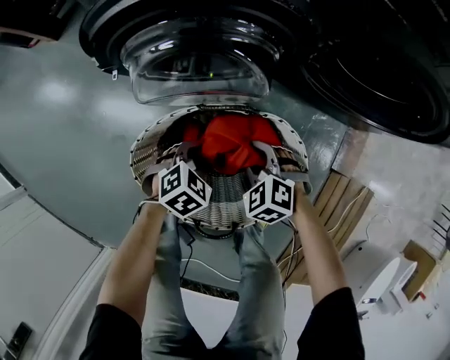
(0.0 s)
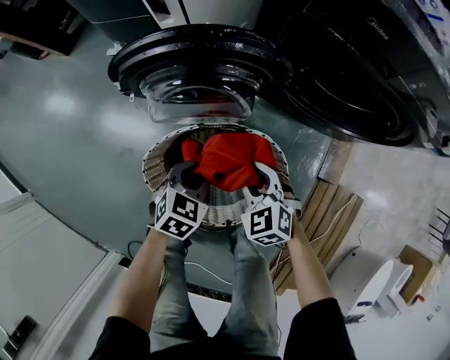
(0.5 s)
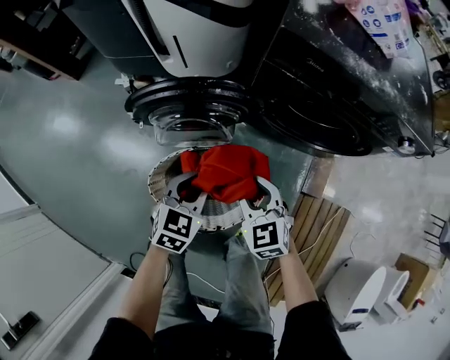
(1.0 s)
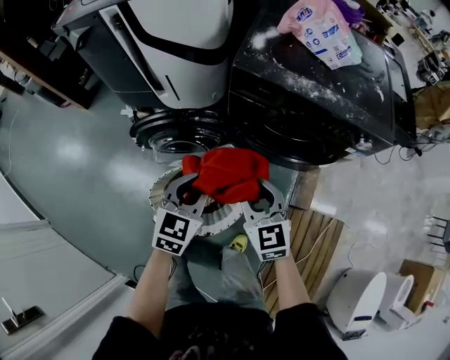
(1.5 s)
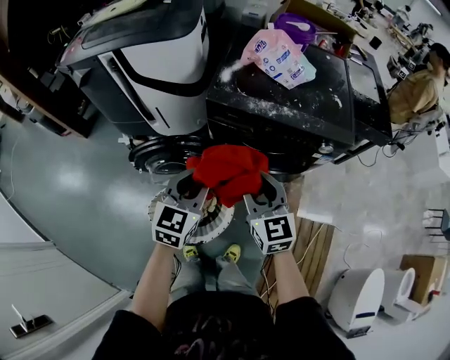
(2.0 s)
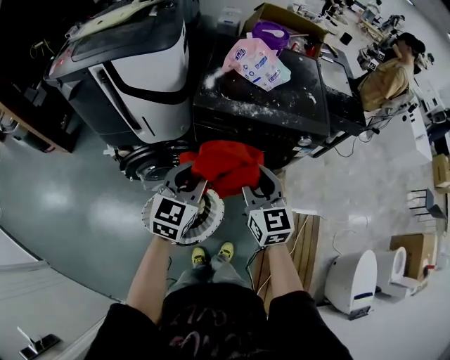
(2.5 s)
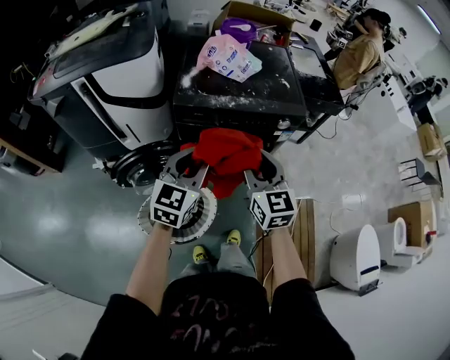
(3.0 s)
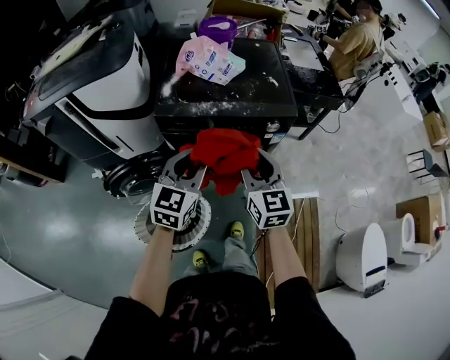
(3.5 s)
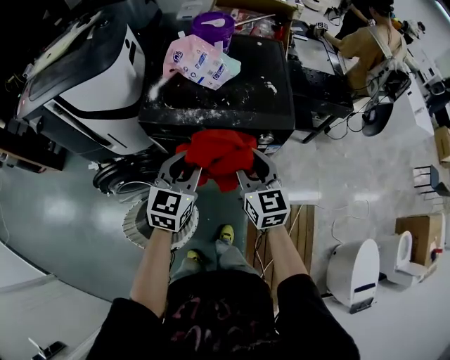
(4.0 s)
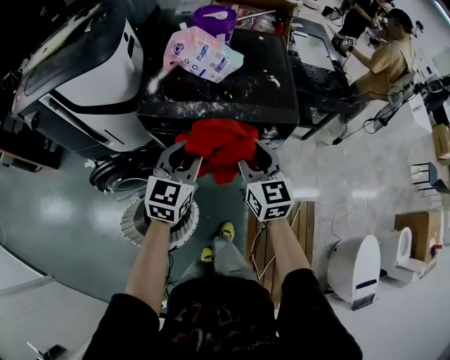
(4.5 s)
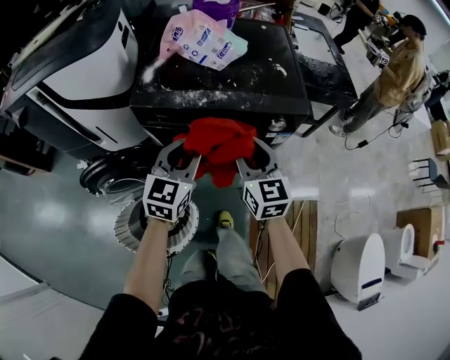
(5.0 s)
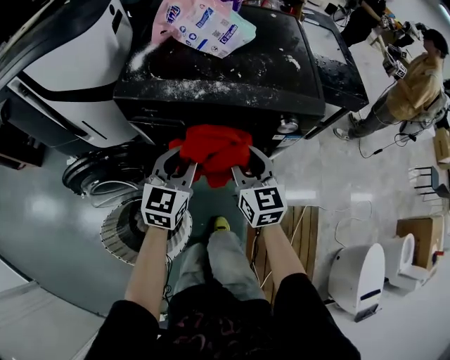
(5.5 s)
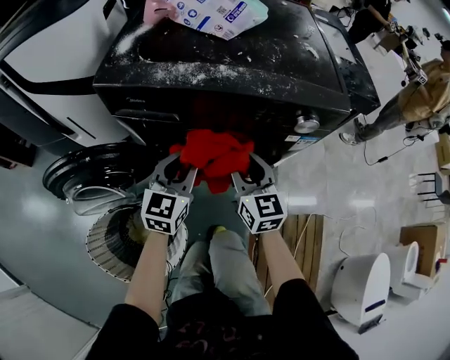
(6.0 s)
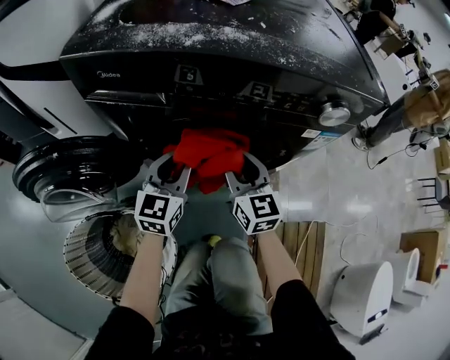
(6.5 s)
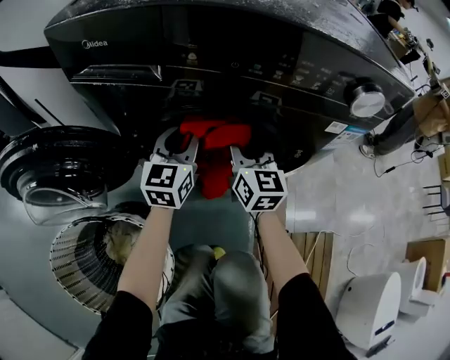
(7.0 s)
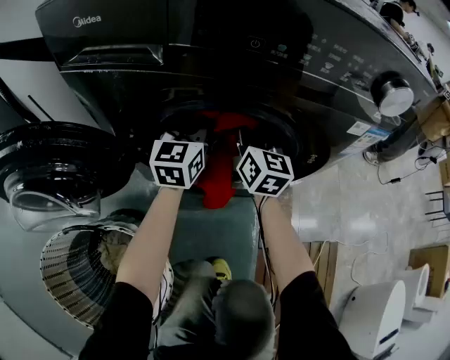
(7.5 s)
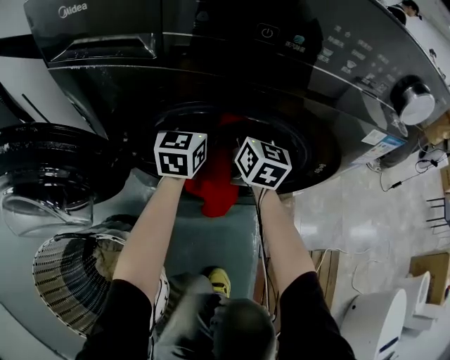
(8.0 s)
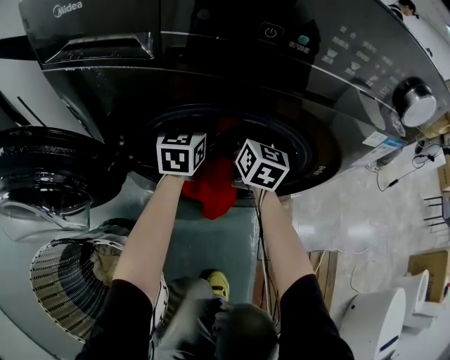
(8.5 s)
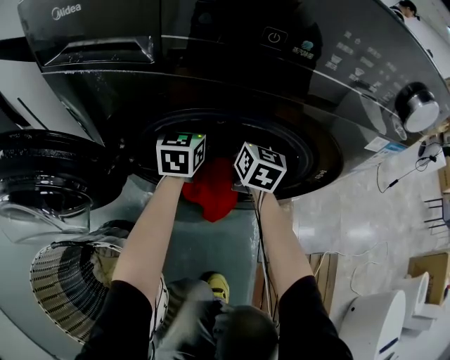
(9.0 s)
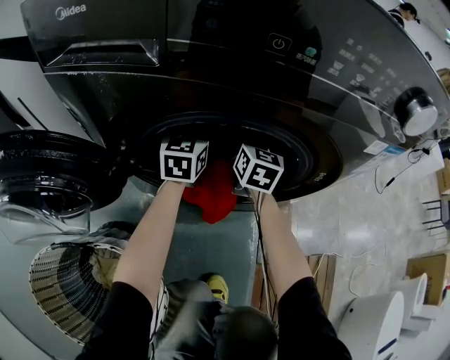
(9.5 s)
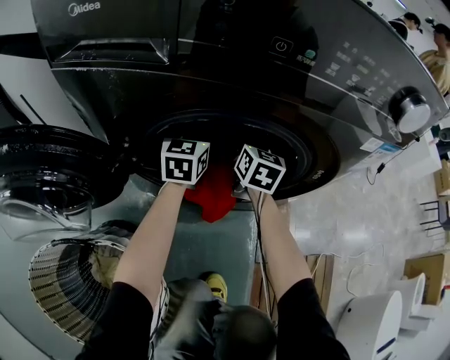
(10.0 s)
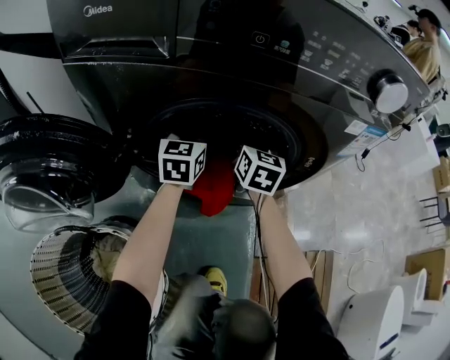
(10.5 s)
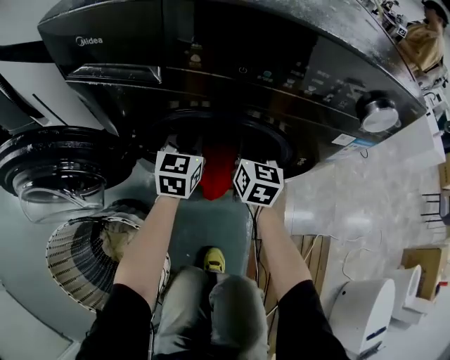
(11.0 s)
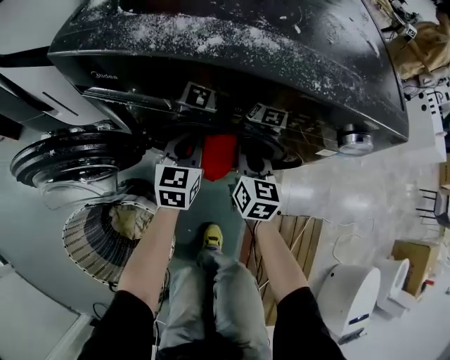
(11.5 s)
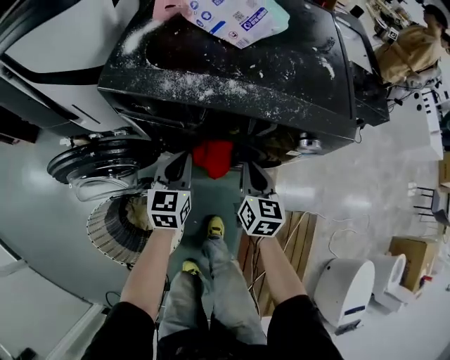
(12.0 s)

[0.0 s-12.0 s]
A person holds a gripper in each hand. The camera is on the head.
0.0 to 2.0 s: The two grippers go about 60 cm upward. The right gripper tilts its fingers some 50 degrees upward. The left gripper points its fingers some 40 degrees further upward.
2.0 to 4.0 s: The grippers both shift to the right and forward by approximately 20 cm.
4.0 to 6.0 s: The two grippers go about 30 cm downward.
6.0 to 8.0 s: The right gripper goes some 30 cm downward and forward. Meanwhile the left gripper travels forward and downward by approximately 30 cm.
8.0 to 10.0 s: The right gripper moves downward, some 5 cm.
10.0 to 12.0 s: The grippers both shift upward and backward by some 30 cm.

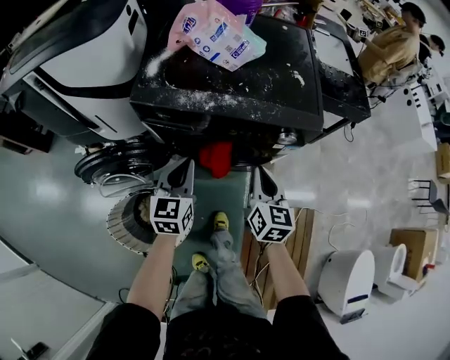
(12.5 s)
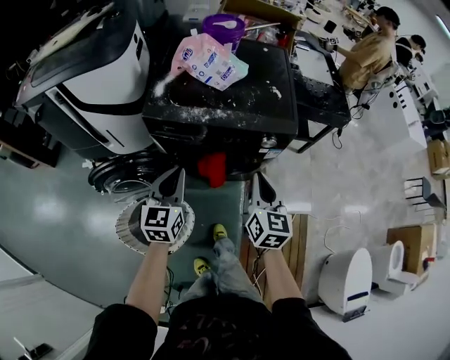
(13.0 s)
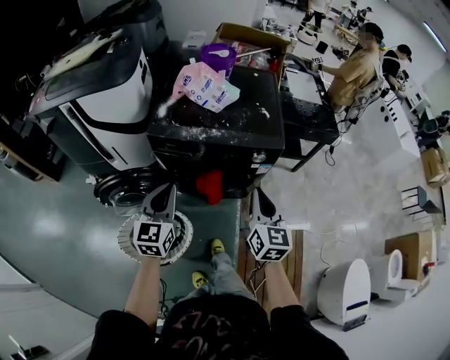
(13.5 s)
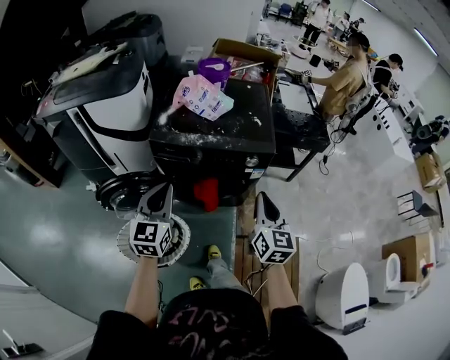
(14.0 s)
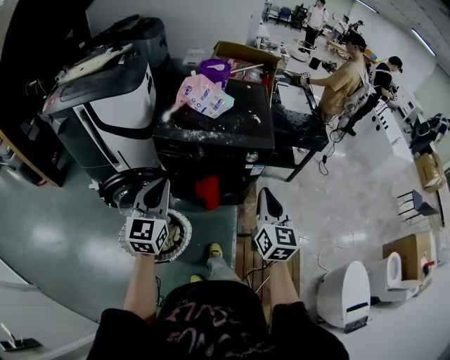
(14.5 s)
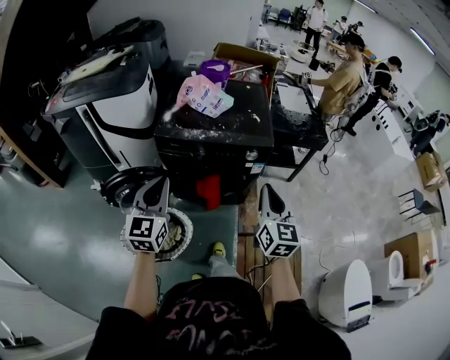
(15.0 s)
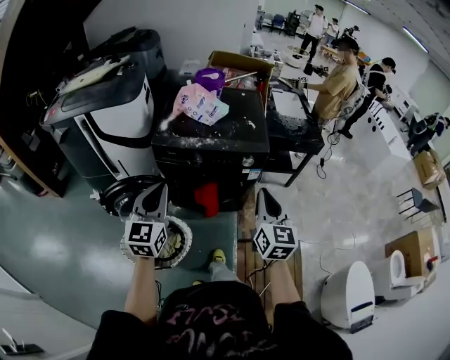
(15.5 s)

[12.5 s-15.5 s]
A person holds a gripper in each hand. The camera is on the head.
12.5 to 14.0 s: The two grippers go roughly 25 cm upward and backward.
14.0 to 15.5 s: The left gripper moves backward, about 5 cm; the right gripper ends up some 5 cm from where it was.

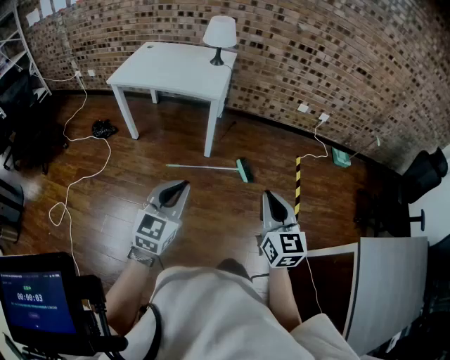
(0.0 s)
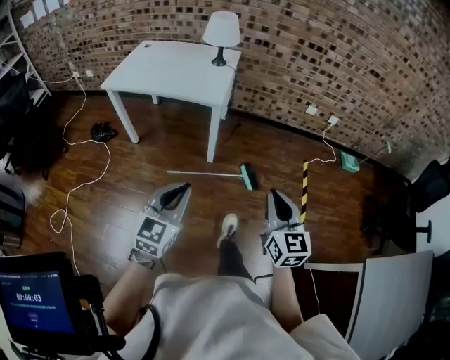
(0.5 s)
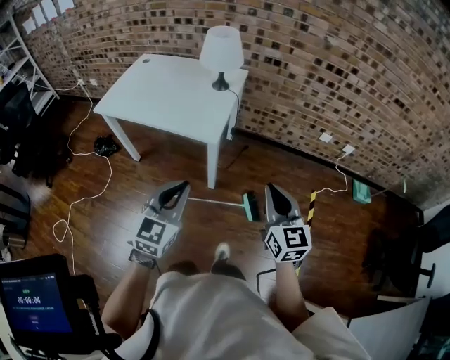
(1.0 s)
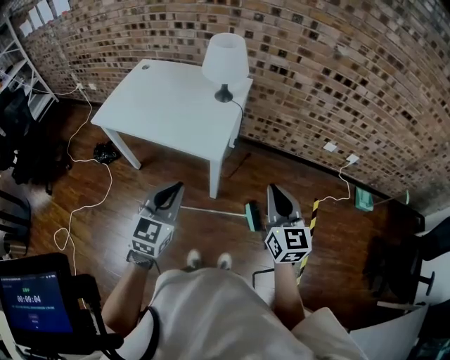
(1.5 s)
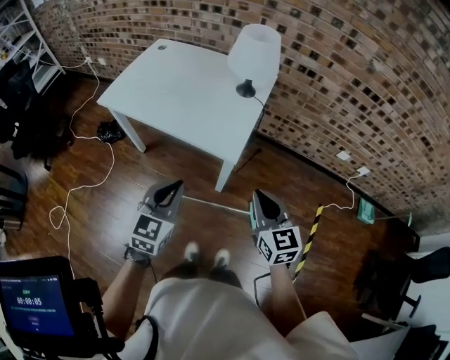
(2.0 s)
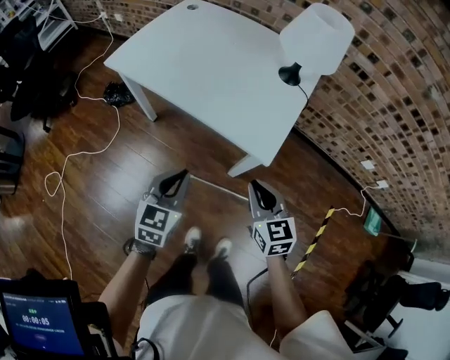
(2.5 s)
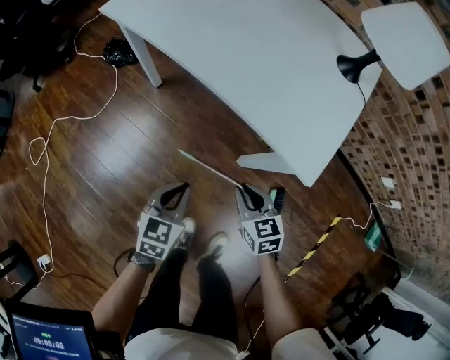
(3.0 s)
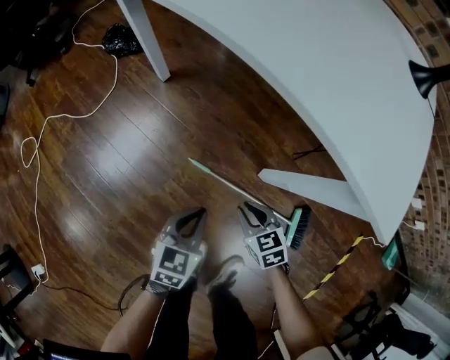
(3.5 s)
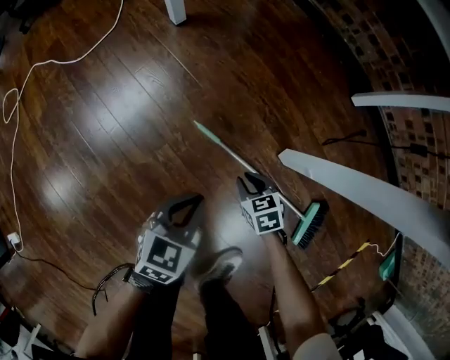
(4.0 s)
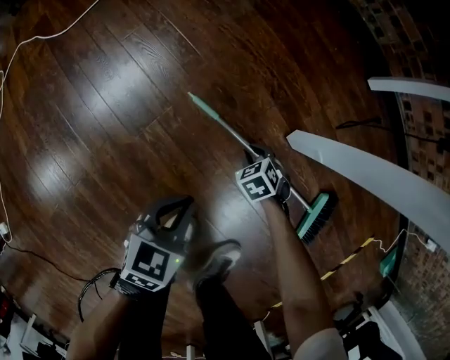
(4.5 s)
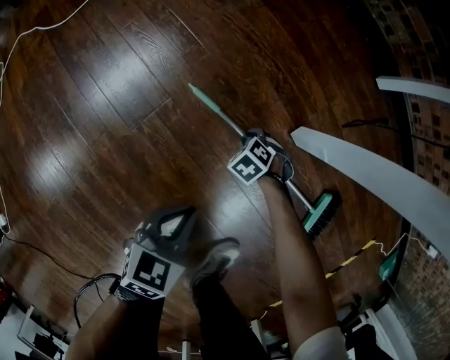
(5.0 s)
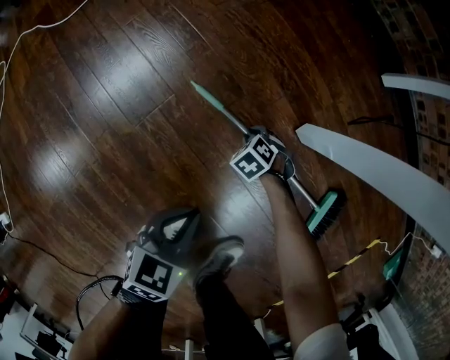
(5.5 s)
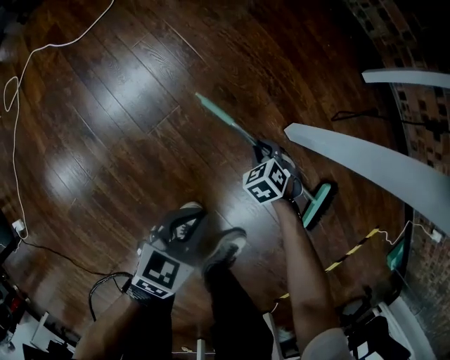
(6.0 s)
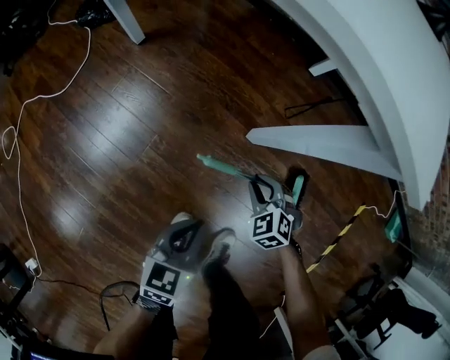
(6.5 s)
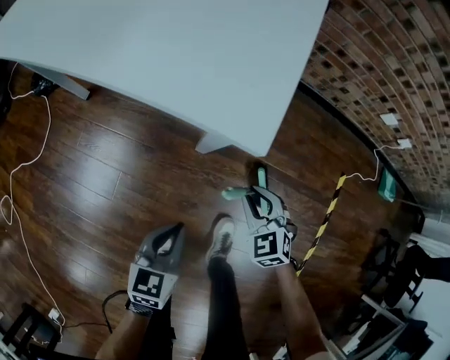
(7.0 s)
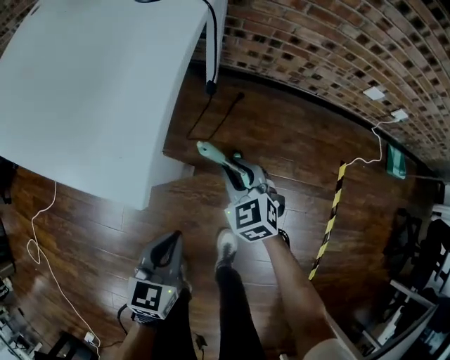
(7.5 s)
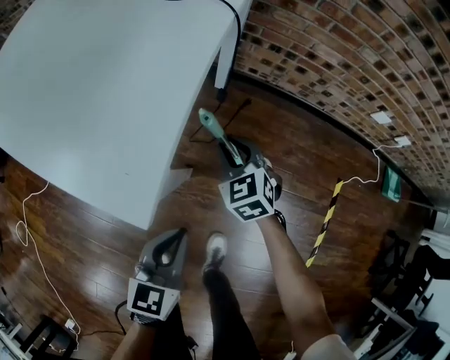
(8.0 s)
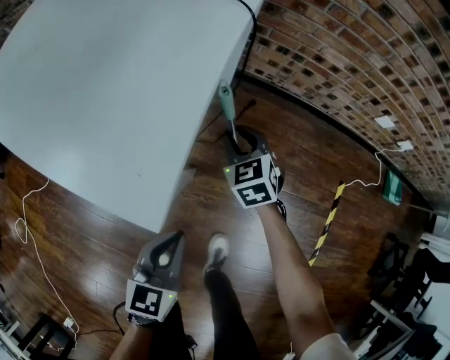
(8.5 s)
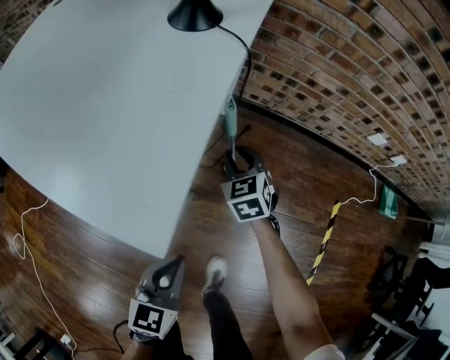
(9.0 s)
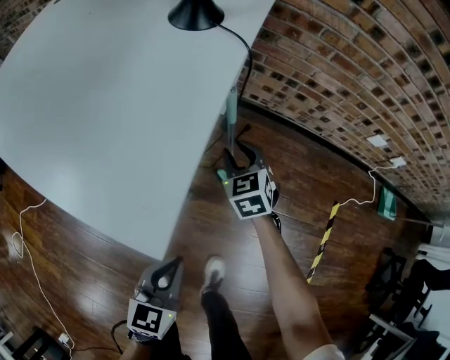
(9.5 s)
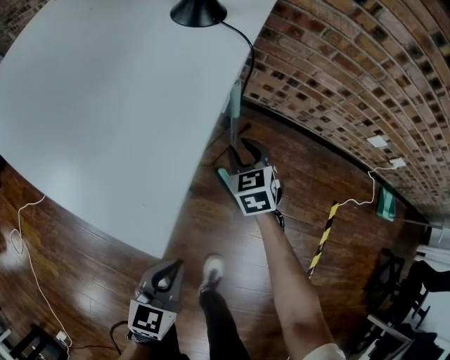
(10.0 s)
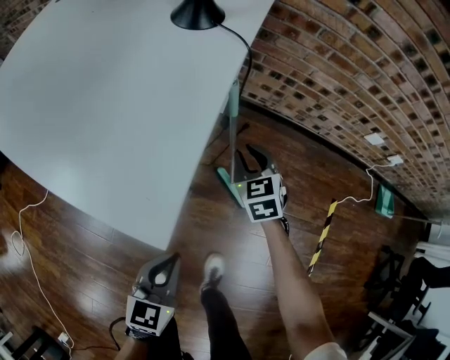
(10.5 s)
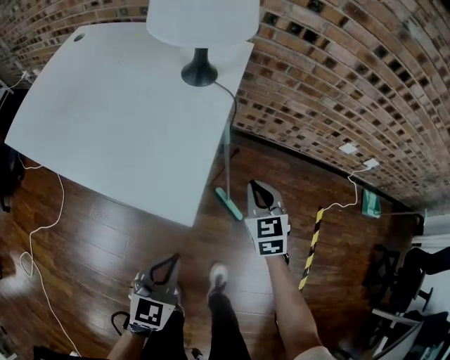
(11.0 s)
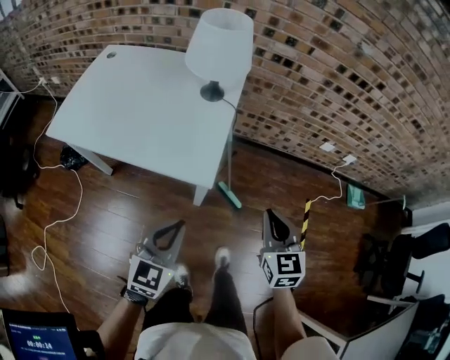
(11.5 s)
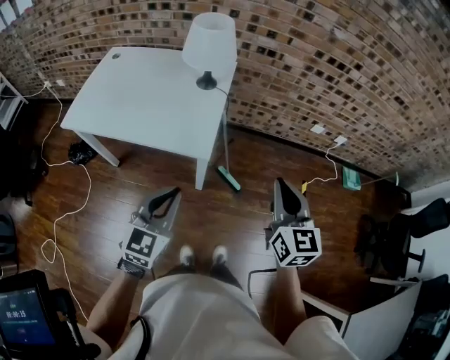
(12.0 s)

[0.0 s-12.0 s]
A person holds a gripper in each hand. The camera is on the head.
0.0 to 2.0 s: The two grippers travel together, forward, some 50 cm. The right gripper swivels about 20 degrees.
2.0 to 4.0 s: Both grippers travel together downward, roughly 70 cm. The right gripper angles its fingers downward, by approximately 40 degrees; the left gripper changes its angle by approximately 30 degrees.
4.0 to 6.0 s: The right gripper goes downward and returns, about 20 cm each way, and rotates roughly 30 degrees. Meanwhile the left gripper goes downward and returns, about 10 cm each way.
6.0 to 8.0 s: Both grippers travel together upward, to the right and forward, some 50 cm. The right gripper tilts its fingers some 30 degrees upward.
8.0 to 10.0 s: The right gripper moves forward, roughly 5 cm.
10.0 to 12.0 s: The left gripper goes approximately 40 cm upward, and changes its angle by some 30 degrees. The right gripper shifts roughly 70 cm upward and backward, turns by approximately 40 degrees, and closes its fingers.
